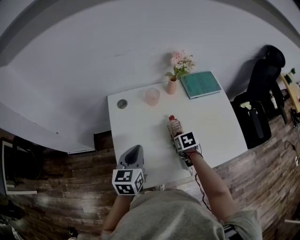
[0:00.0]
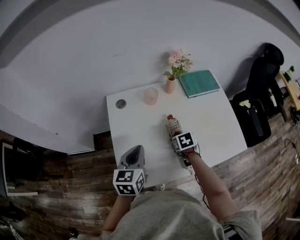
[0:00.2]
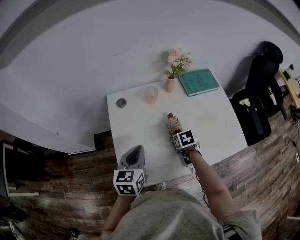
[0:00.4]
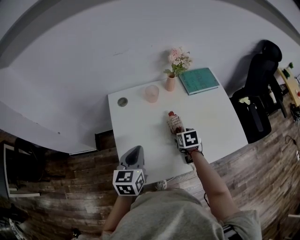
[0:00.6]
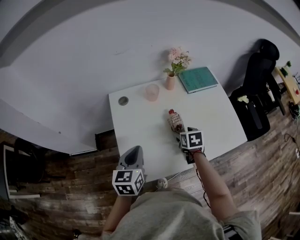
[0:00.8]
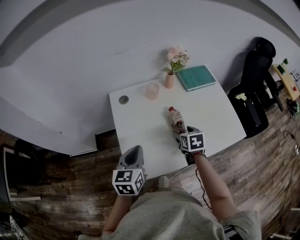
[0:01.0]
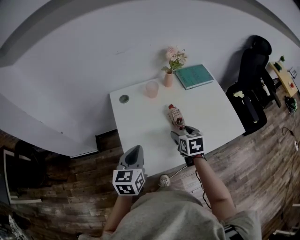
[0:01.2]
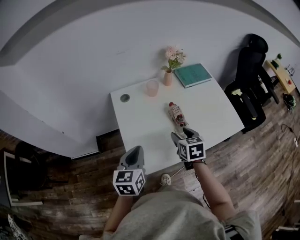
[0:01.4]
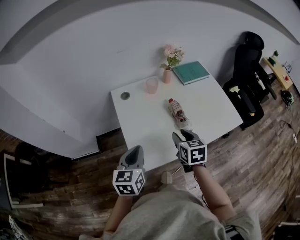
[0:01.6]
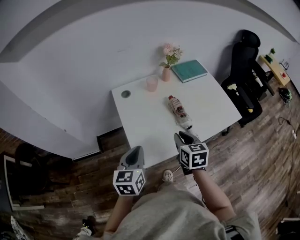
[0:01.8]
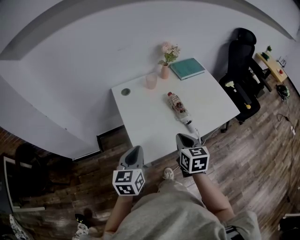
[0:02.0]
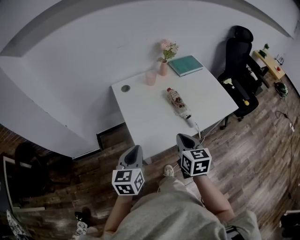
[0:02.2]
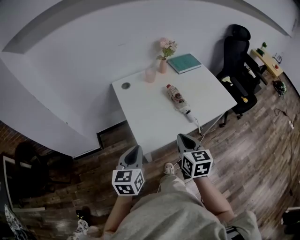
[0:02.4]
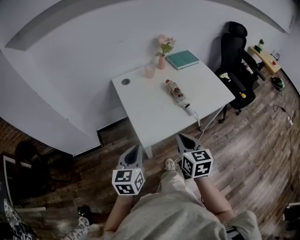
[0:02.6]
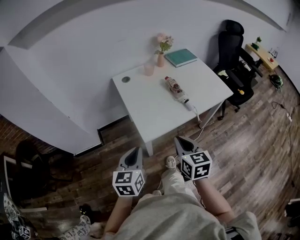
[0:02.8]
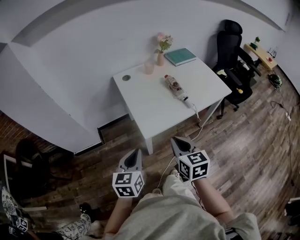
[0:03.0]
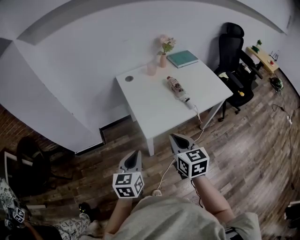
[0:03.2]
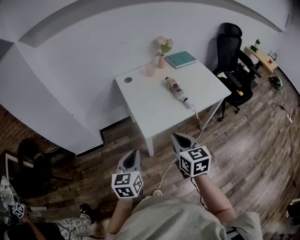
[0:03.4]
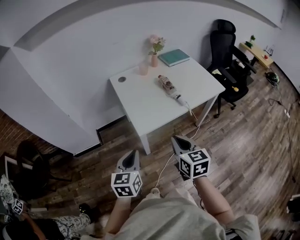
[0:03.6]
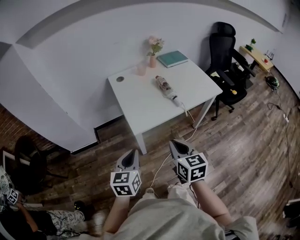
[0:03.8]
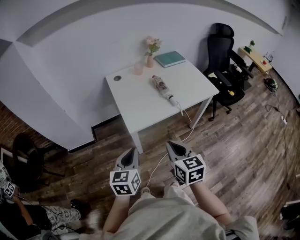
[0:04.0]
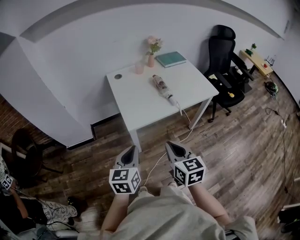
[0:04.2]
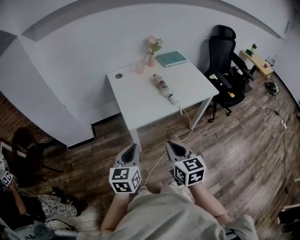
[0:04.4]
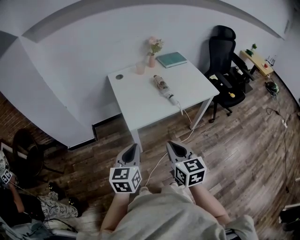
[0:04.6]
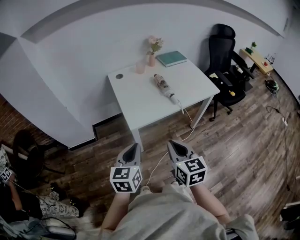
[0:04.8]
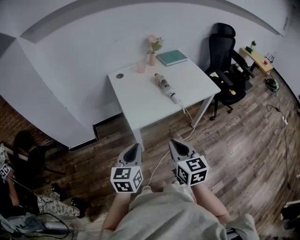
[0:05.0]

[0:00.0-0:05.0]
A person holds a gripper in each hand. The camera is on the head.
0.0 to 1.6 s: The right gripper travels upward, backward and to the left by about 25 cm, and turns by some 30 degrees. The left gripper heads backward and to the left, covering roughly 15 cm.
1.6 to 3.4 s: The two grippers go roughly 25 cm backward. The right gripper closes its fingers.
3.4 to 5.0 s: The right gripper goes approximately 10 cm backward and to the right; the left gripper shifts some 10 cm to the right and backward.

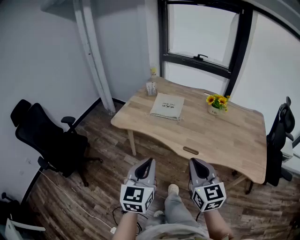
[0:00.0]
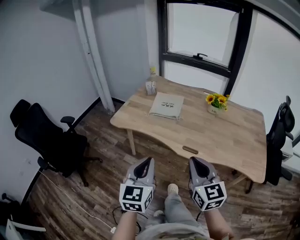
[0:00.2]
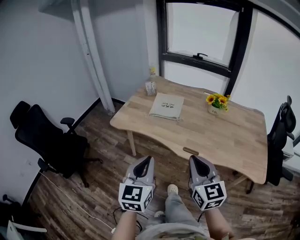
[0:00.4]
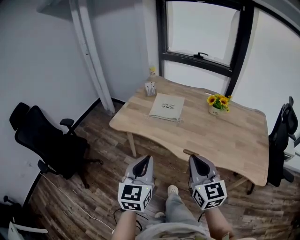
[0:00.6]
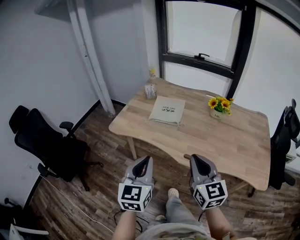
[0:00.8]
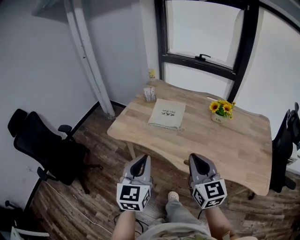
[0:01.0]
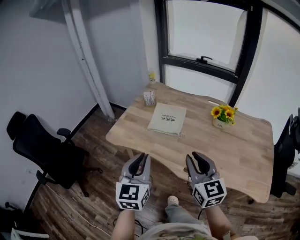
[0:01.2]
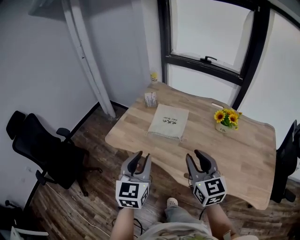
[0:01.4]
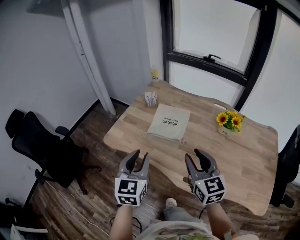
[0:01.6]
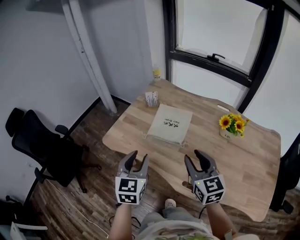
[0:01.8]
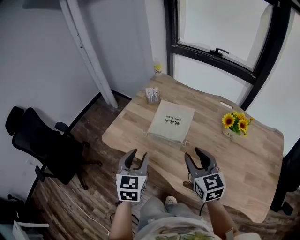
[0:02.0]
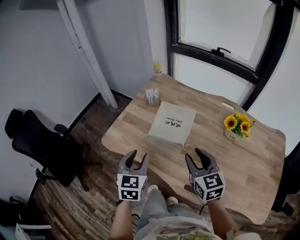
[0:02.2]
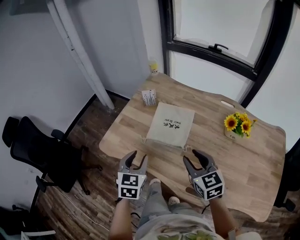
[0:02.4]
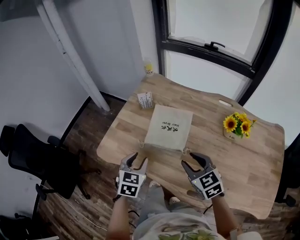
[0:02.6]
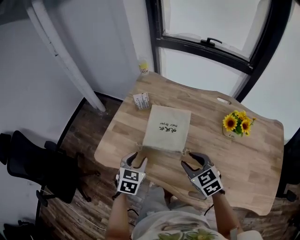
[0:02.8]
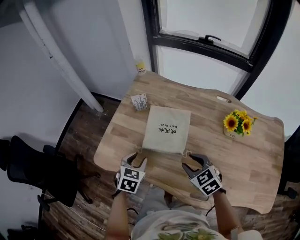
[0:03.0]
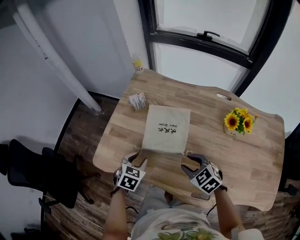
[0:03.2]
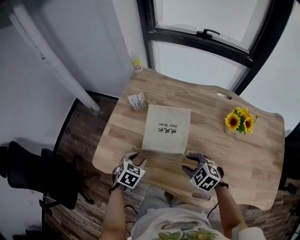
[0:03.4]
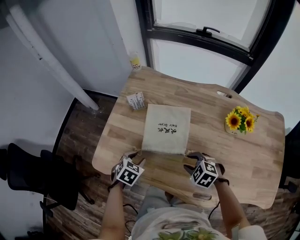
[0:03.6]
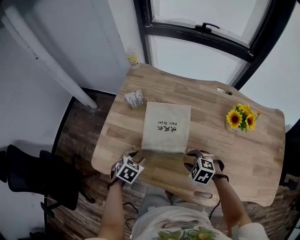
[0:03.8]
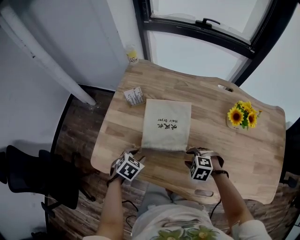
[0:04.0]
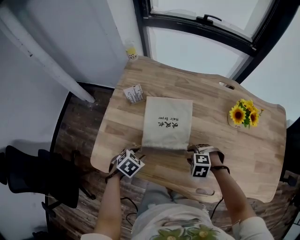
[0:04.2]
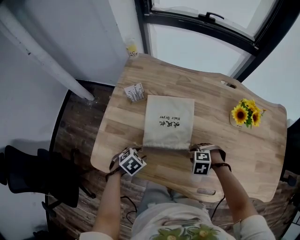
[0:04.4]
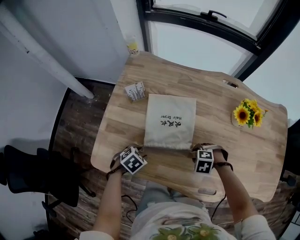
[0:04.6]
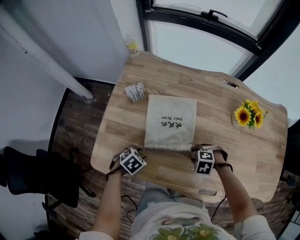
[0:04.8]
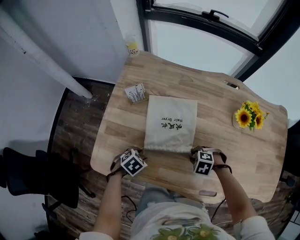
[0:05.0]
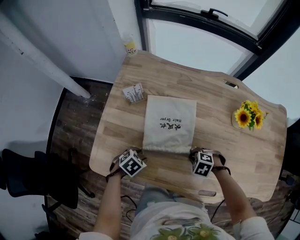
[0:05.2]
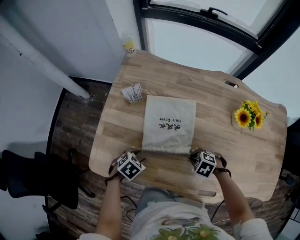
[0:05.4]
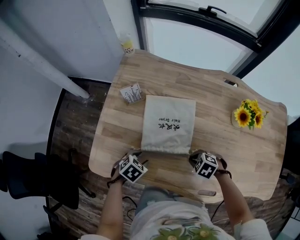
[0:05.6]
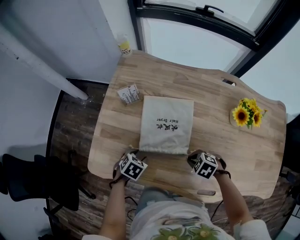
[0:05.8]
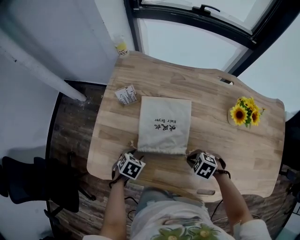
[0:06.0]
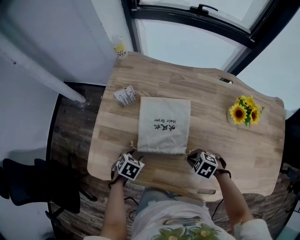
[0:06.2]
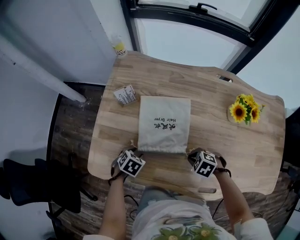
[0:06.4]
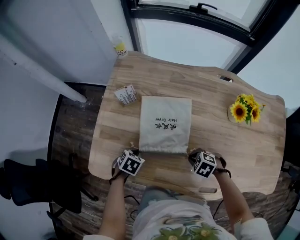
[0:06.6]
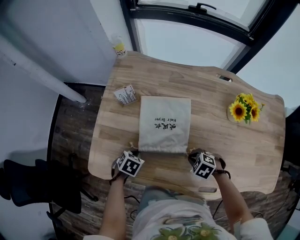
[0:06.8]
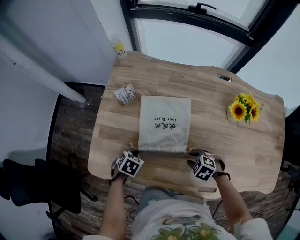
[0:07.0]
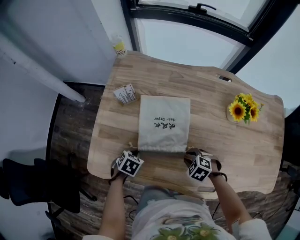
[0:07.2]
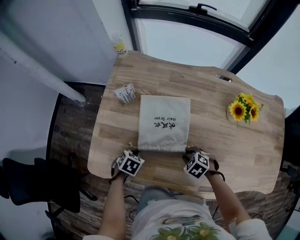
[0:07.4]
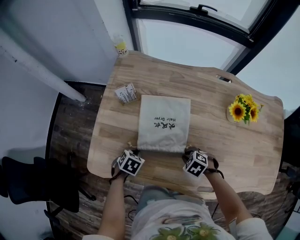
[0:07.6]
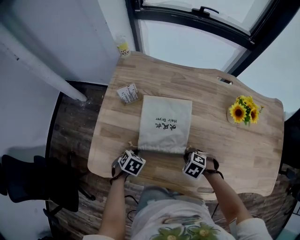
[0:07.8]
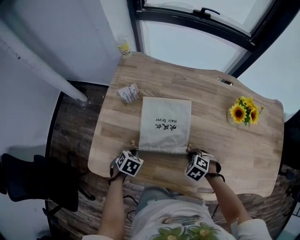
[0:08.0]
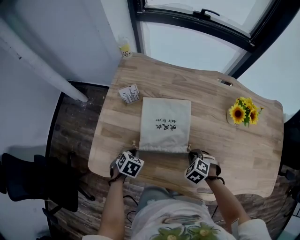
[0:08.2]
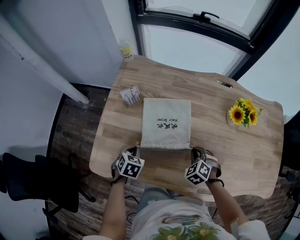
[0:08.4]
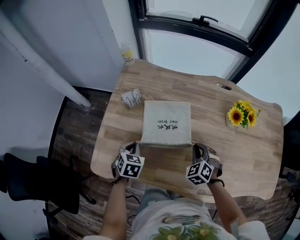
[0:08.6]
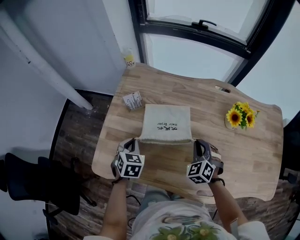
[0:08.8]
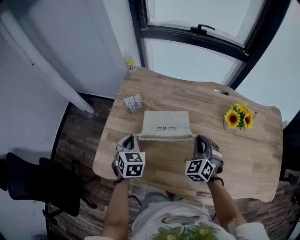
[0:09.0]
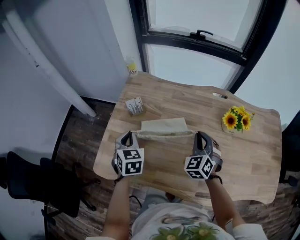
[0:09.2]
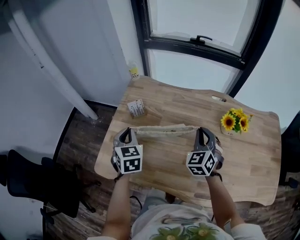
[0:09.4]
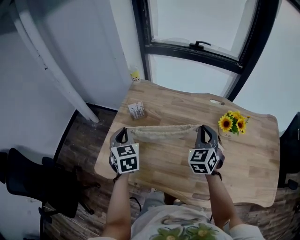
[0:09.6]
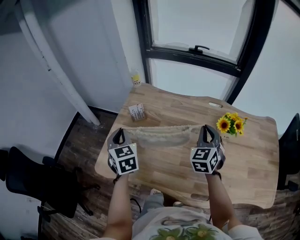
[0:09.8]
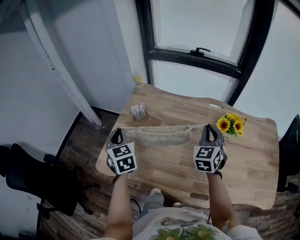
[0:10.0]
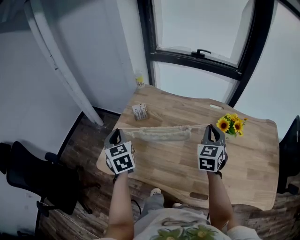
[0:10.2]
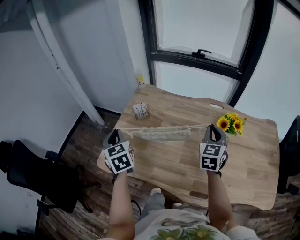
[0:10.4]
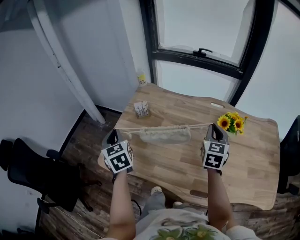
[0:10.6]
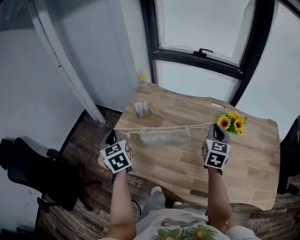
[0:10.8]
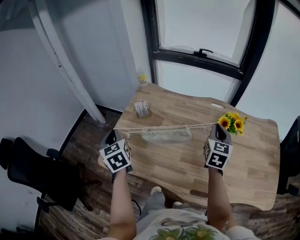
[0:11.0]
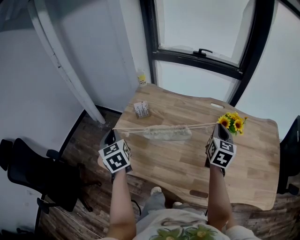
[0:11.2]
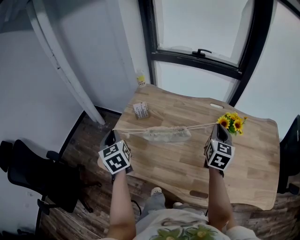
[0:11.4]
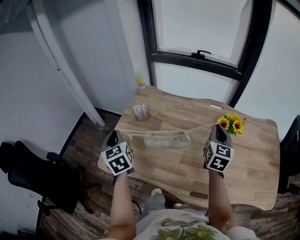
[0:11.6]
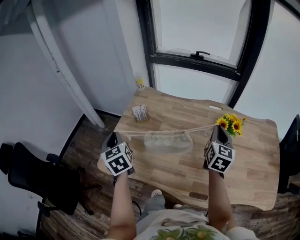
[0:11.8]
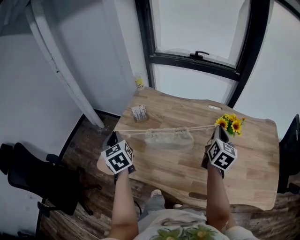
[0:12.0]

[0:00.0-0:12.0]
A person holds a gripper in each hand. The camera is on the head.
0.0 to 1.6 s: The two grippers go about 25 cm forward. The right gripper opens, while the left gripper opens up.
1.6 to 3.0 s: Both grippers travel together downward and forward, some 25 cm. The left gripper tips its fingers downward by about 30 degrees; the right gripper angles its fingers downward, by approximately 30 degrees.
3.0 to 4.4 s: The grippers both shift downward by roughly 15 cm. The left gripper swivels roughly 40 degrees; the right gripper points its fingers about 40 degrees further downward.
4.4 to 6.0 s: The right gripper rotates some 30 degrees, and closes its fingers.
6.0 to 7.6 s: The left gripper closes up.
7.6 to 9.0 s: Both grippers move upward, roughly 20 cm. The left gripper tilts its fingers roughly 30 degrees upward. The right gripper angles its fingers upward, by about 40 degrees.
9.0 to 10.4 s: The left gripper moves upward and backward, approximately 20 cm, and turns by about 30 degrees; the right gripper goes about 15 cm upward and to the right, and swivels roughly 30 degrees.
10.4 to 12.0 s: The right gripper heads to the right, covering roughly 5 cm, and changes its angle by roughly 30 degrees.

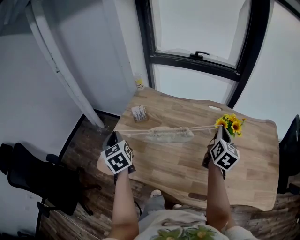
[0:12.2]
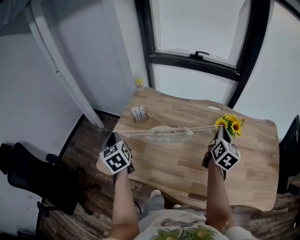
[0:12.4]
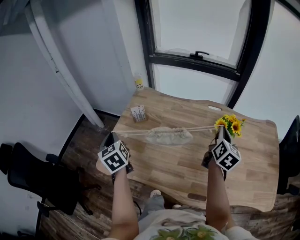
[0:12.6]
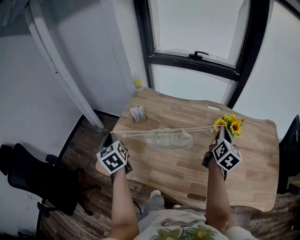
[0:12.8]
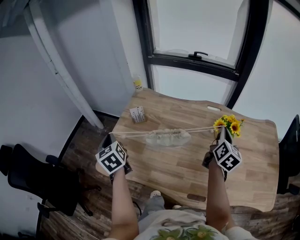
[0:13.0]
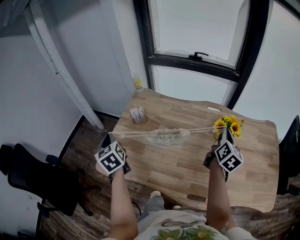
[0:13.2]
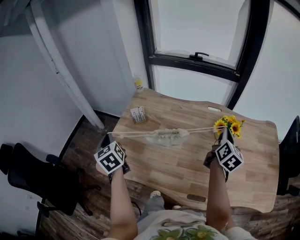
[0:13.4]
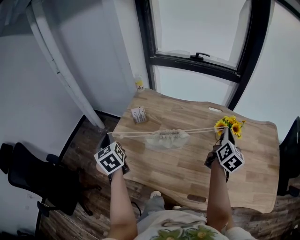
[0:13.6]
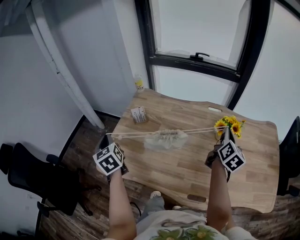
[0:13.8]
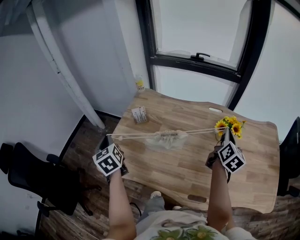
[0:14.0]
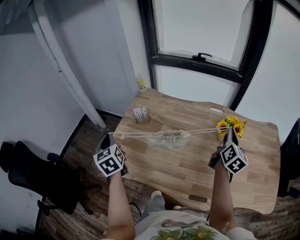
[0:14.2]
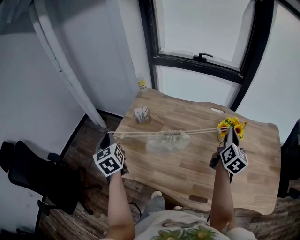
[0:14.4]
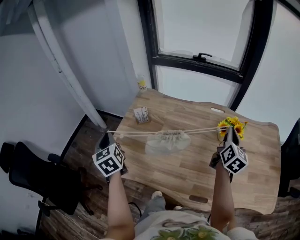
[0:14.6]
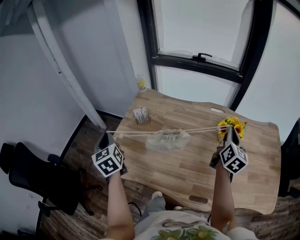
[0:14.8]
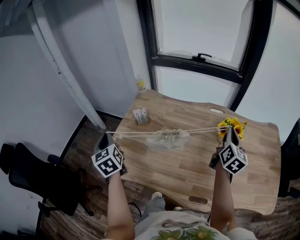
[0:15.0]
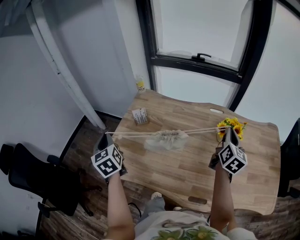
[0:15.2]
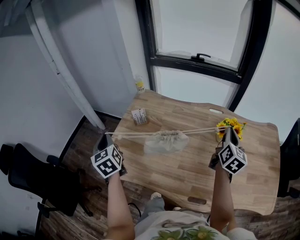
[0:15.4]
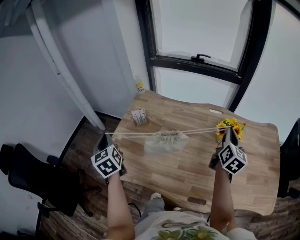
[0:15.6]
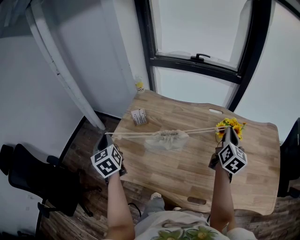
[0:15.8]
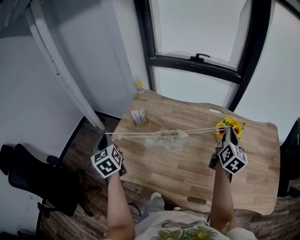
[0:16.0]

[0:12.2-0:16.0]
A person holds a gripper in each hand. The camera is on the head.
12.2 to 14.8 s: There are only small adjustments of the grippers.
14.8 to 16.0 s: The two grippers keep their place.

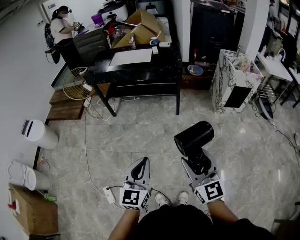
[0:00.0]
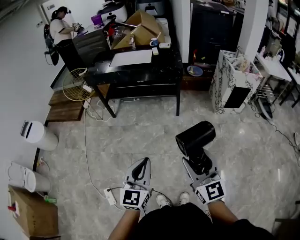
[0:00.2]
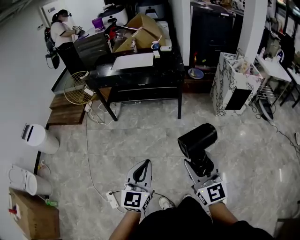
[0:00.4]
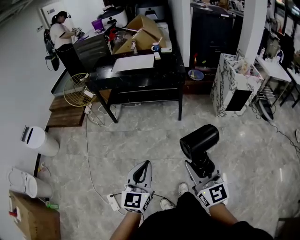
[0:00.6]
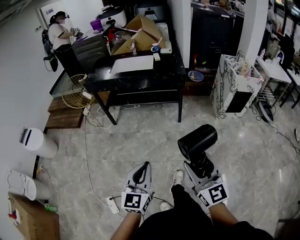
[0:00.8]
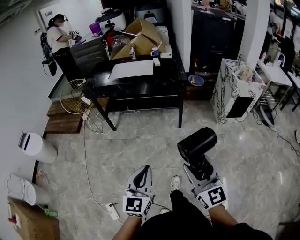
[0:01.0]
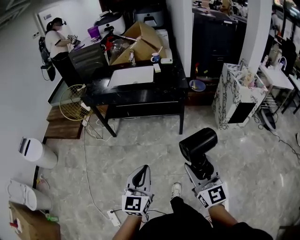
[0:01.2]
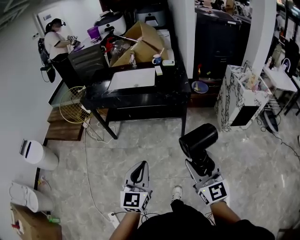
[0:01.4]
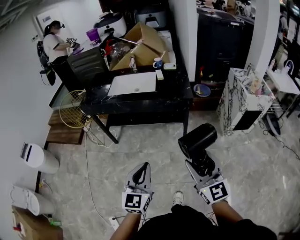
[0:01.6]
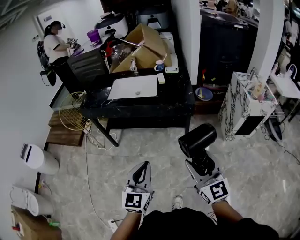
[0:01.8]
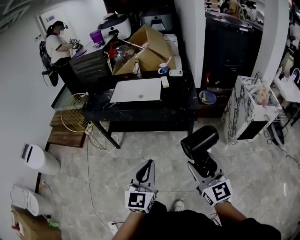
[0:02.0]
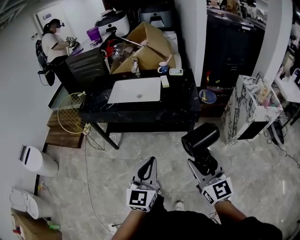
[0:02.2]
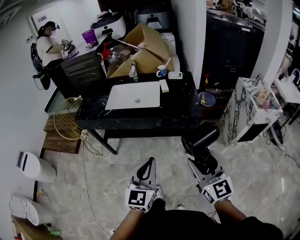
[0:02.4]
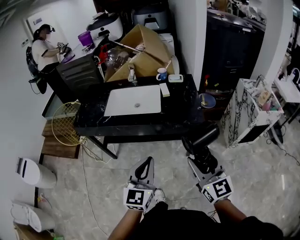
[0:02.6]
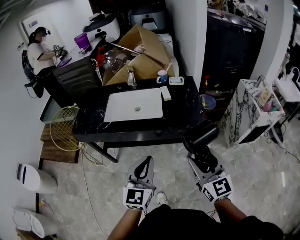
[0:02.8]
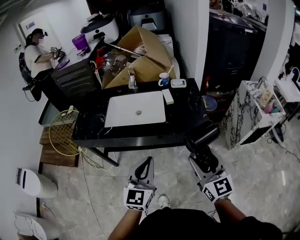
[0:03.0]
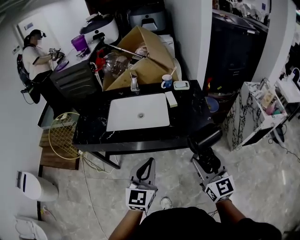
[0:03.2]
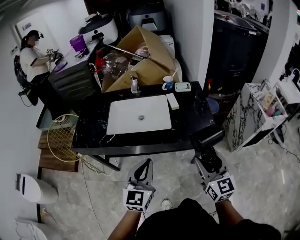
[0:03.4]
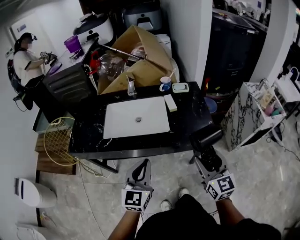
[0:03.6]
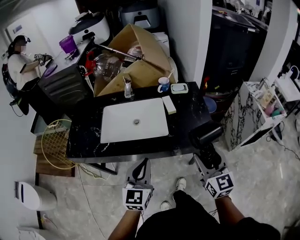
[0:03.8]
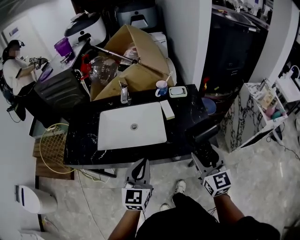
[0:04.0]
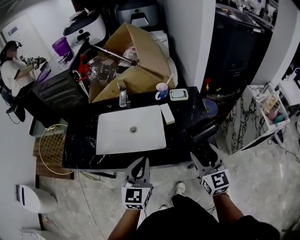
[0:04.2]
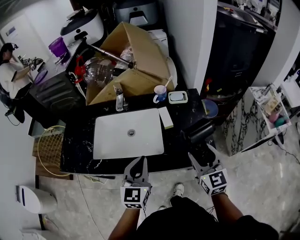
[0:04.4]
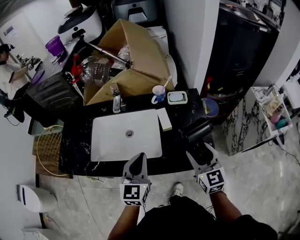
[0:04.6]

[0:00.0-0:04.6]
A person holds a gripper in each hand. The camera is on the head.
0.0 to 1.6 s: The two grippers go some 30 cm forward.
1.6 to 3.0 s: The grippers both shift forward by about 30 cm.
3.0 to 4.6 s: The grippers both shift forward by about 30 cm.
